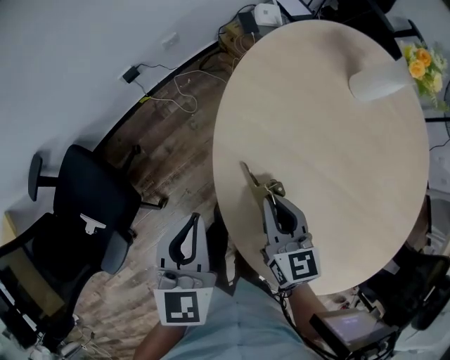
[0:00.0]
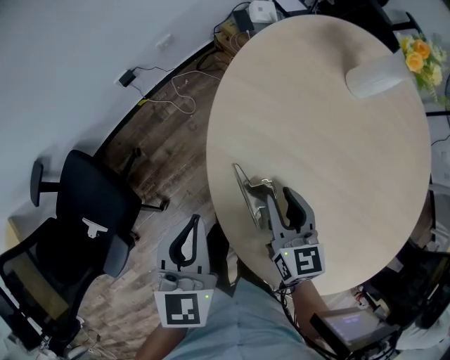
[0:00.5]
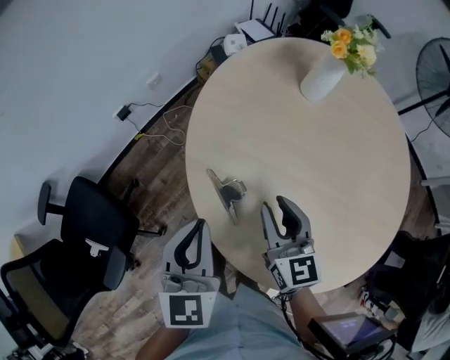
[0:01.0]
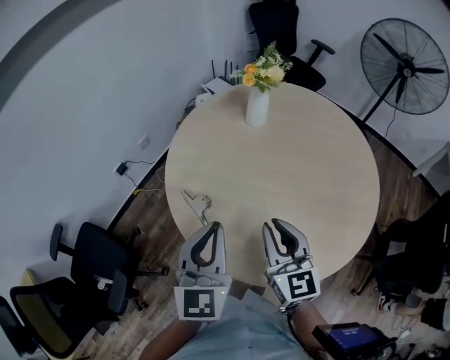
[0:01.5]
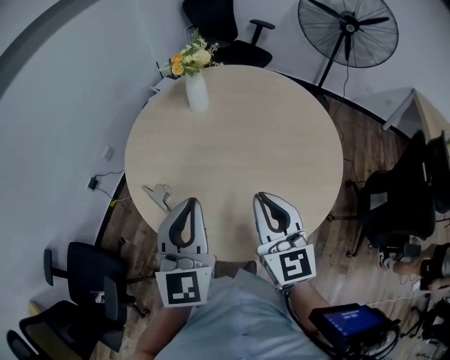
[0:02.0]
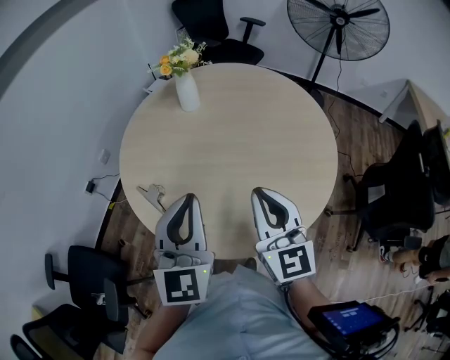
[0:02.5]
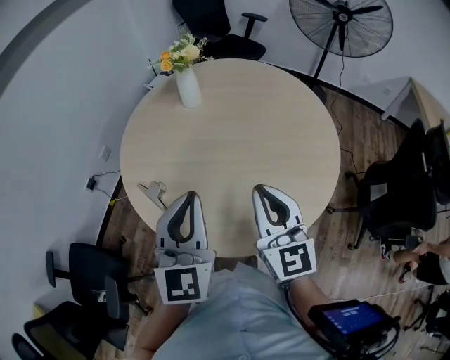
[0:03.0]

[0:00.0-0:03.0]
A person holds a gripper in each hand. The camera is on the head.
0:00.0 to 0:01.5: The right gripper goes about 35 cm upward, to the right and backward, and turns by some 30 degrees. The left gripper goes some 35 cm to the right, upward and backward, and changes its angle by roughly 30 degrees.
0:01.5 to 0:03.0: The left gripper moves to the right, approximately 10 cm; the right gripper is displaced to the right and backward by roughly 15 cm.

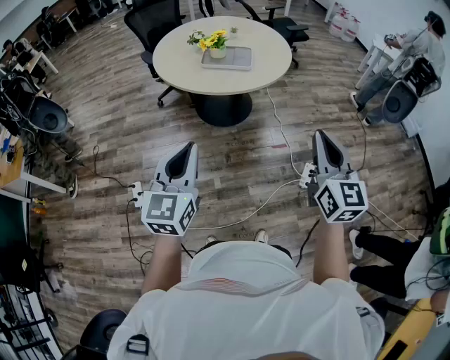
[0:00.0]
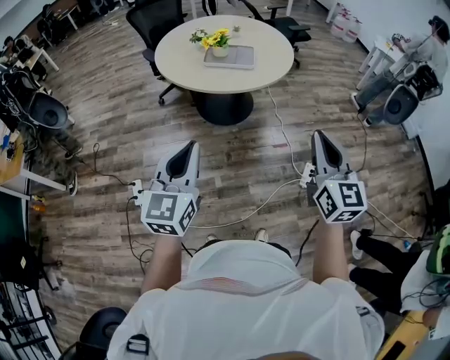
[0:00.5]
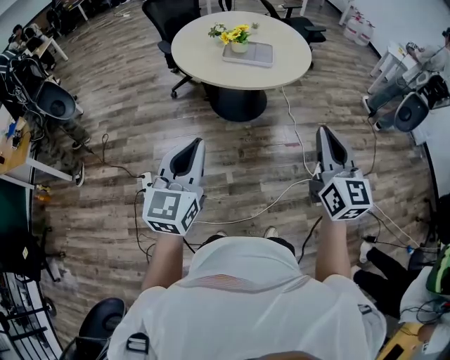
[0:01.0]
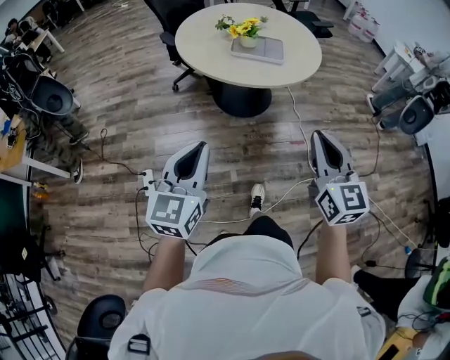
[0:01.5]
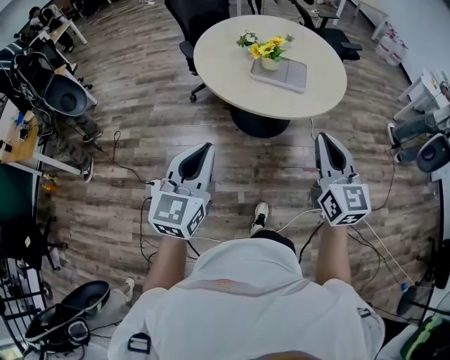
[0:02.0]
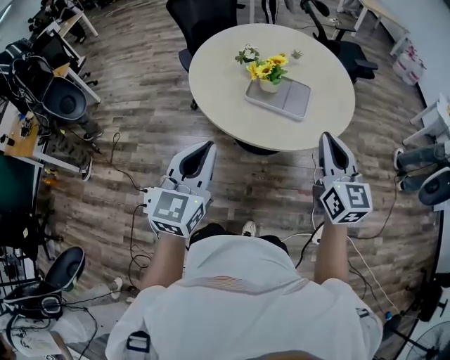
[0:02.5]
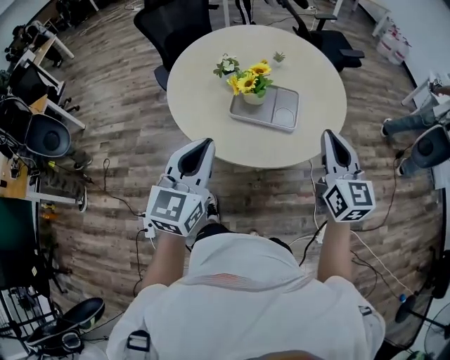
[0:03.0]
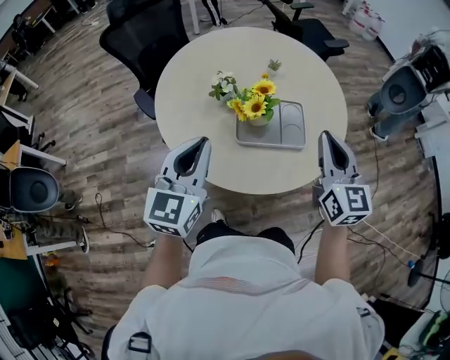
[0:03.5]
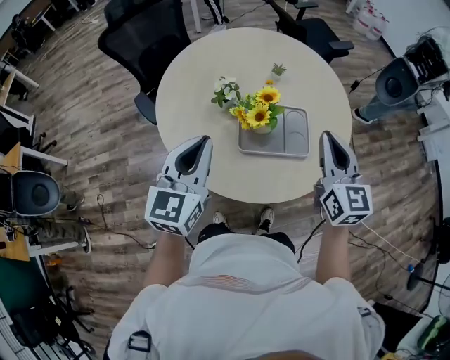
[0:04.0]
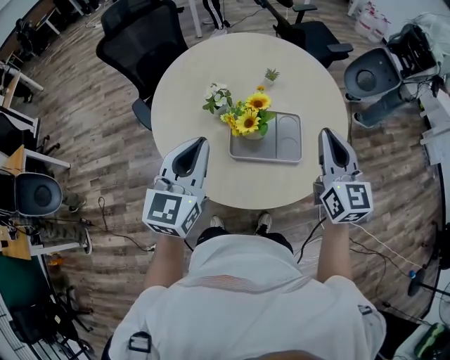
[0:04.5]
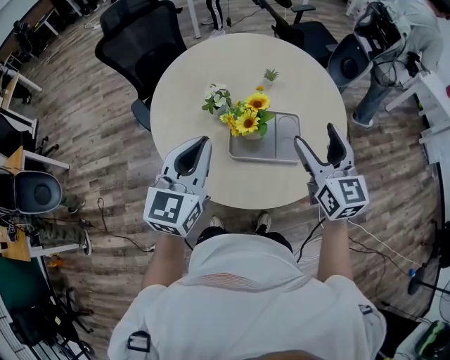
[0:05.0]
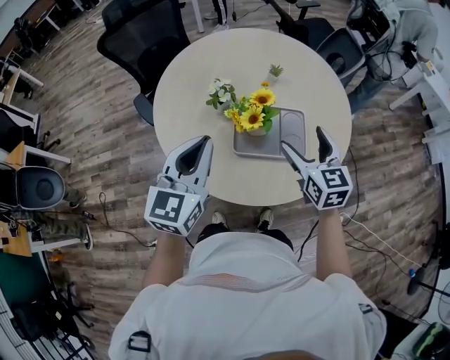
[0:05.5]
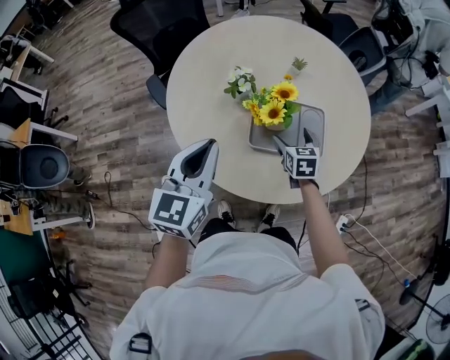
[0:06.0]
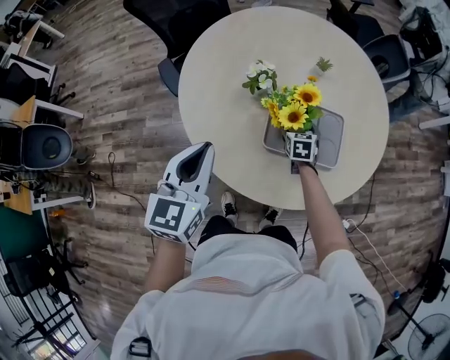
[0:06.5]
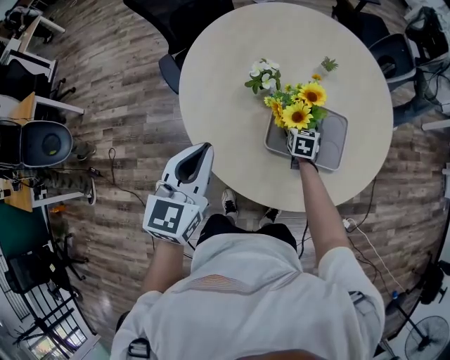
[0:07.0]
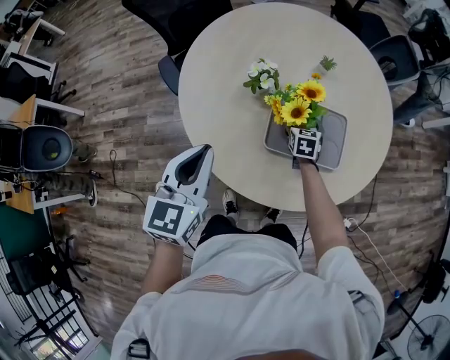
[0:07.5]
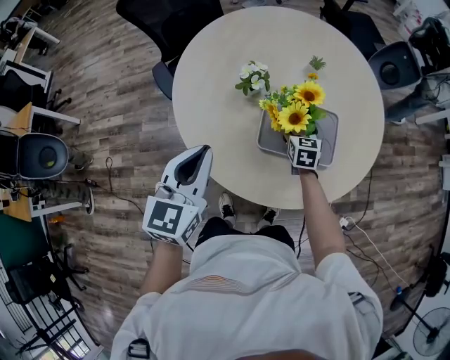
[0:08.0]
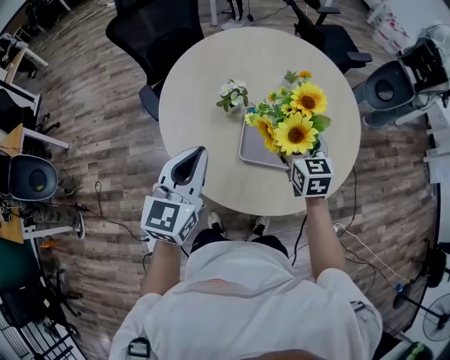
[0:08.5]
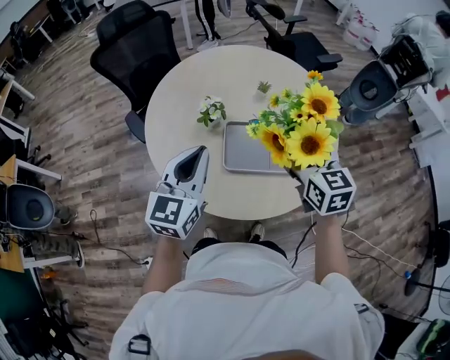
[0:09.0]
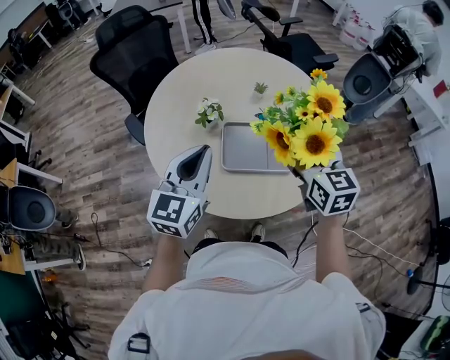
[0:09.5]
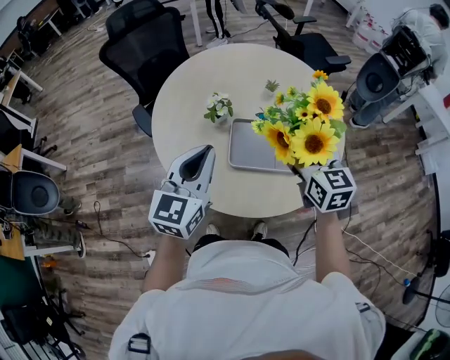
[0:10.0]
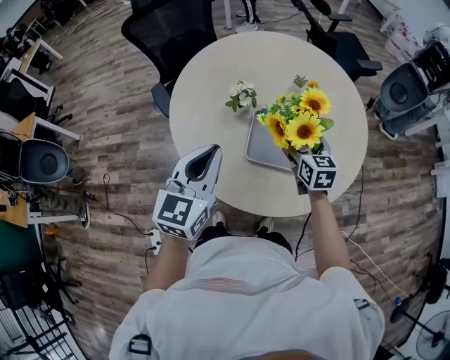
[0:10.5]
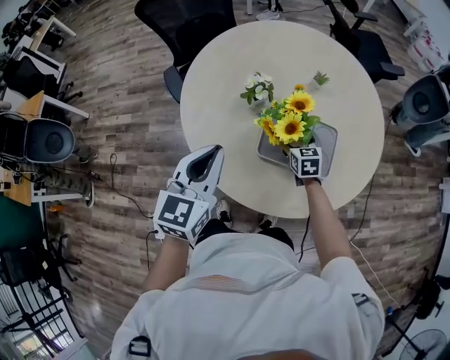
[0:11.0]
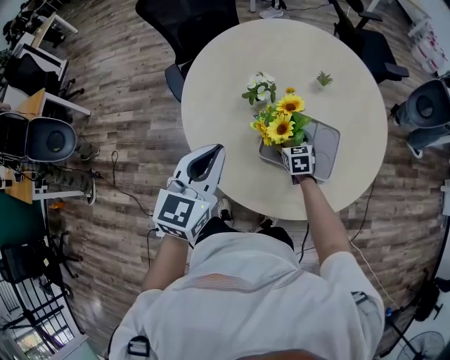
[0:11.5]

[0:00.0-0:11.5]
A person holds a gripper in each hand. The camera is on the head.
0:00.0 to 0:02.0: The two grippers go approximately 25 cm forward and to the left.
0:02.0 to 0:04.0: The two grippers travel together, forward, approximately 50 cm.
0:04.0 to 0:06.0: The right gripper moves downward, some 25 cm, angles its fingers downward, by some 30 degrees, and opens its fingers.
0:06.0 to 0:07.5: The left gripper goes about 5 cm to the left; the right gripper is displaced downward and forward by approximately 15 cm.
0:07.5 to 0:09.5: The right gripper goes some 40 cm upward and backward, and turns by some 30 degrees. The left gripper shifts about 10 cm to the right and upward.
0:09.5 to 0:11.5: The left gripper heads downward, covering some 5 cm; the right gripper shifts approximately 35 cm downward, and changes its angle by approximately 30 degrees.

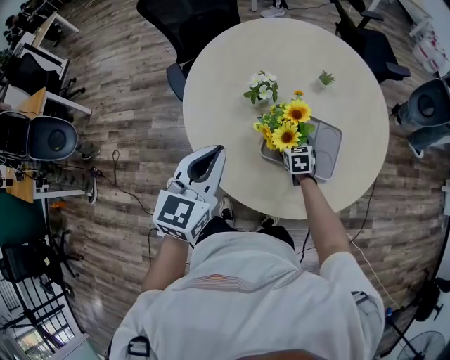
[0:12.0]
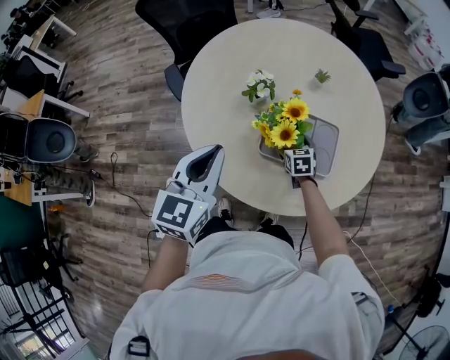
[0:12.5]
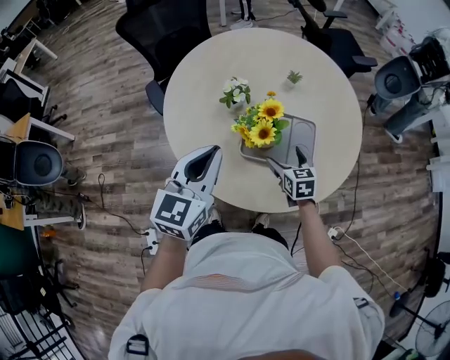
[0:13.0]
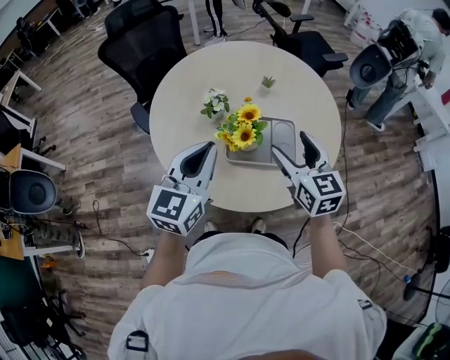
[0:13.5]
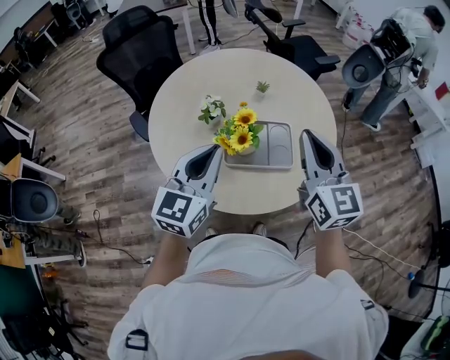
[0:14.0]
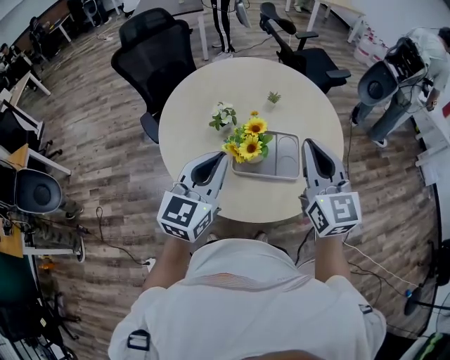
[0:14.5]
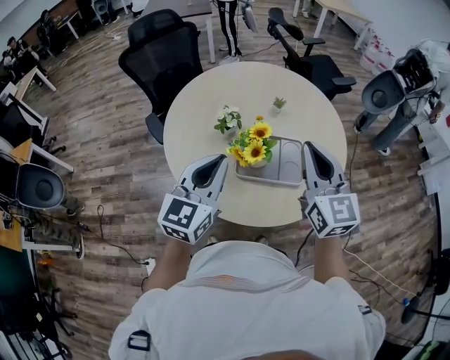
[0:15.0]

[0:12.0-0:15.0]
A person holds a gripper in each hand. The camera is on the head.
0:12.0 to 0:13.5: The right gripper is displaced upward and backward by some 35 cm, and angles its fingers upward, by roughly 30 degrees. The left gripper travels upward and to the right by about 10 cm.
0:13.5 to 0:15.0: The right gripper travels upward by about 10 cm, and closes up.

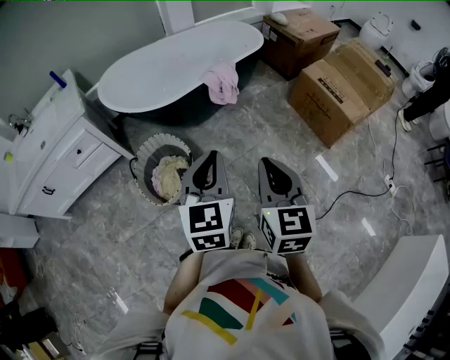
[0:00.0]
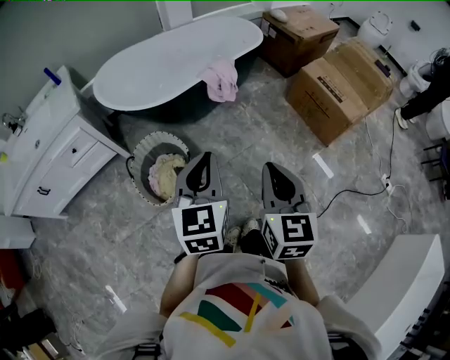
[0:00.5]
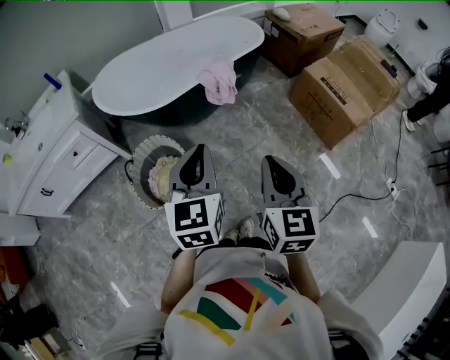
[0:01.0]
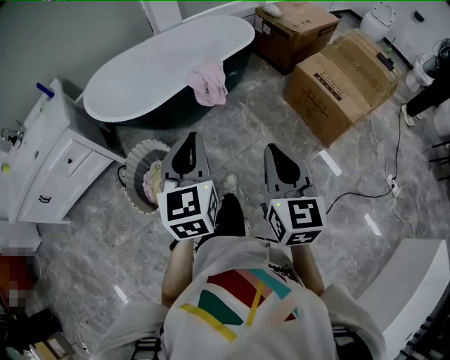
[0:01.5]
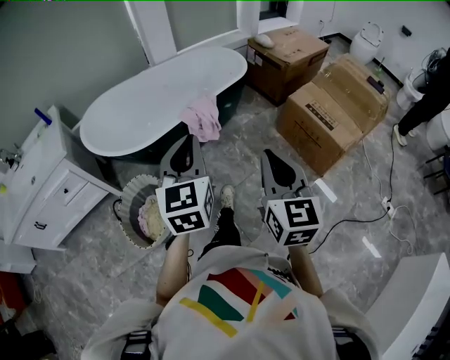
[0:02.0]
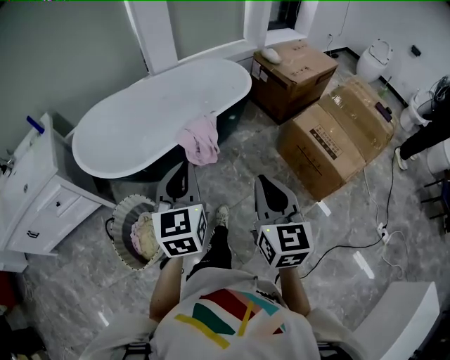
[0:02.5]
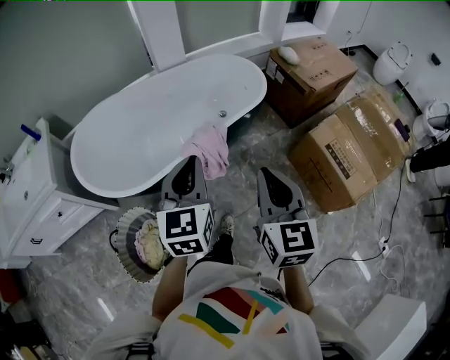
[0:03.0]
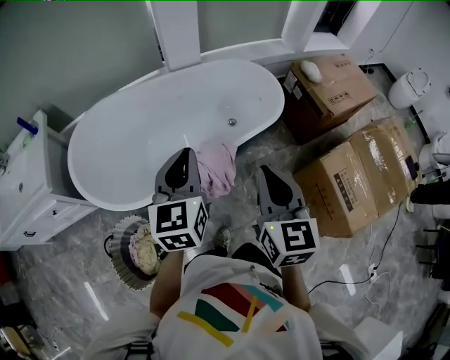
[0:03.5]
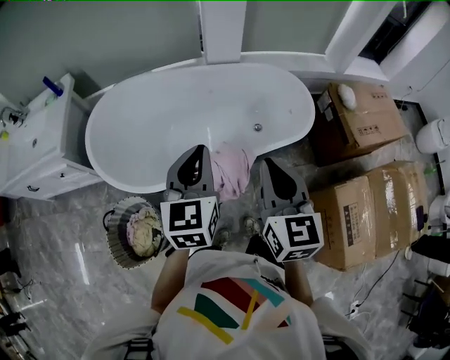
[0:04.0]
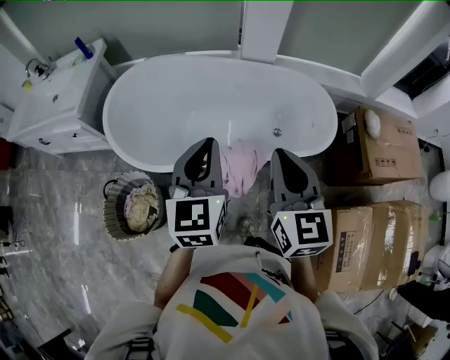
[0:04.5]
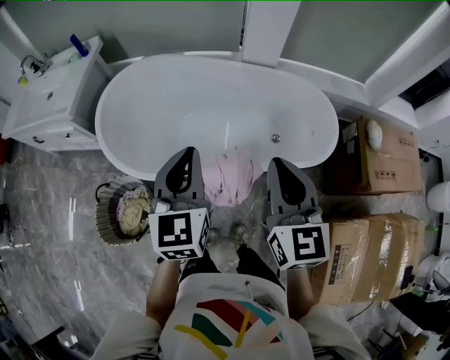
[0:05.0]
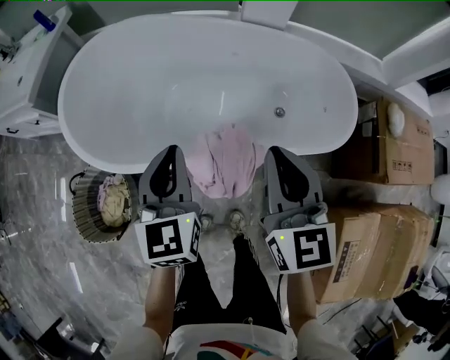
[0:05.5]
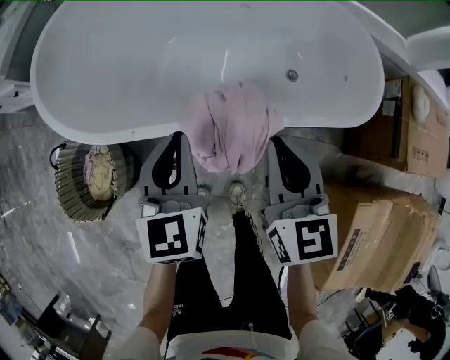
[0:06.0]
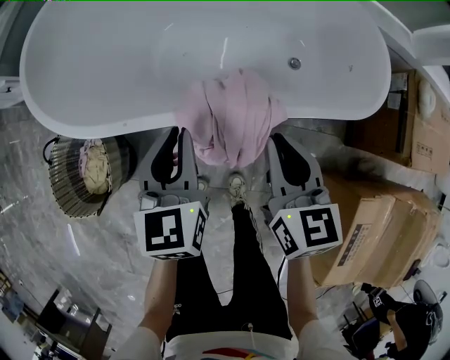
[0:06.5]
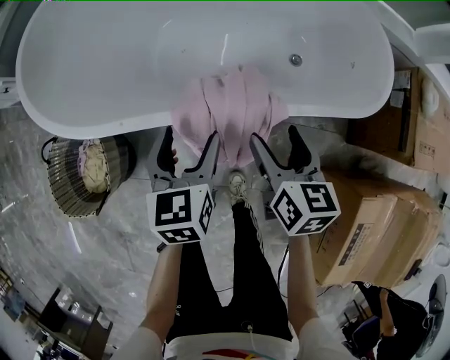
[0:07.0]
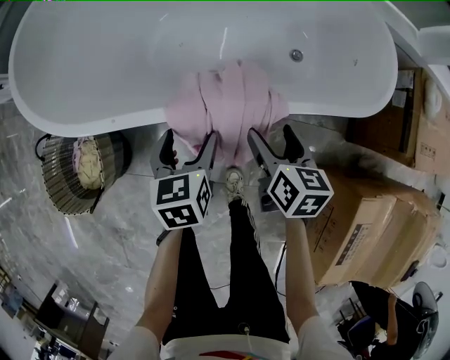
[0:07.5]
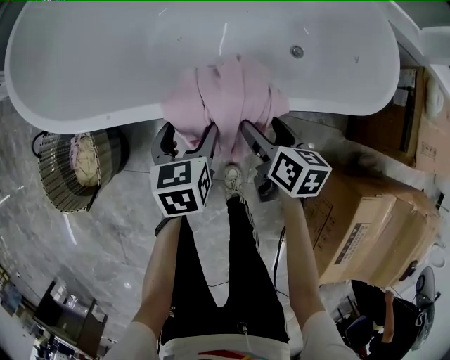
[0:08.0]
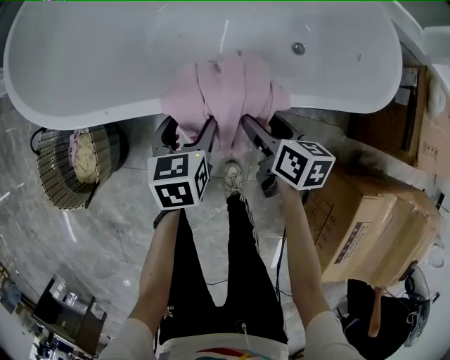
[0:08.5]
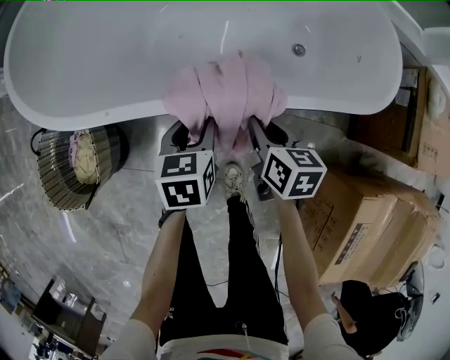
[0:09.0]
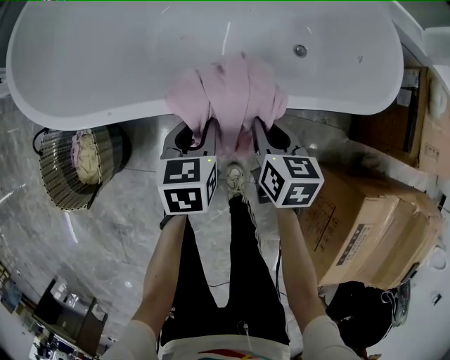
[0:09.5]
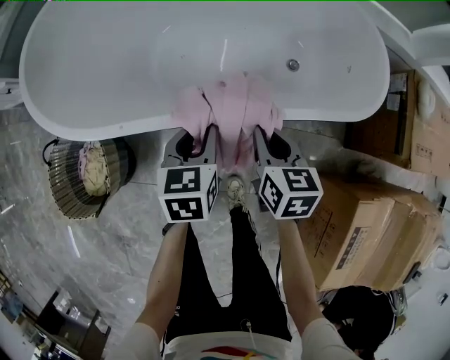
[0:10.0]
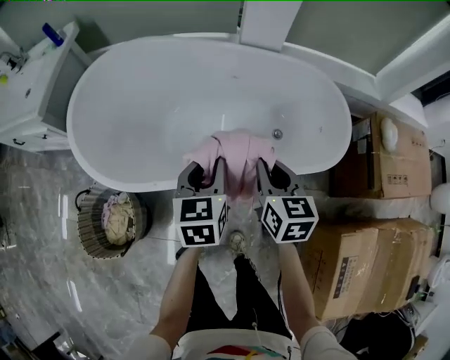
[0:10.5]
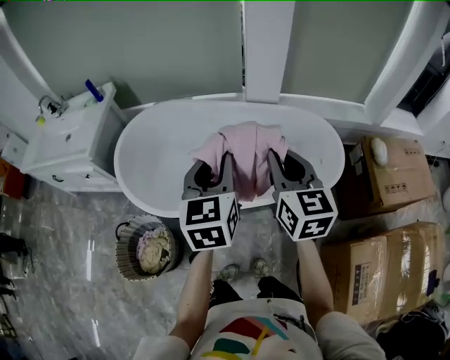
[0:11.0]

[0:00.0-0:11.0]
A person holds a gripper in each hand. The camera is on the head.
0:00.0 to 0:02.0: The left gripper travels forward by approximately 20 cm, while the right gripper is displaced forward and to the right by approximately 20 cm.
0:02.0 to 0:03.5: Both grippers are carried forward, roughly 40 cm.
0:03.5 to 0:05.5: The left gripper shifts approximately 20 cm downward, and turns by about 30 degrees, while the right gripper moves some 25 cm, and turns by about 30 degrees.
0:05.5 to 0:07.5: Both grippers move downward, about 30 cm. The right gripper rotates approximately 40 degrees, and opens its fingers, while the left gripper rotates about 30 degrees, and opens up.
0:07.5 to 0:09.0: The left gripper closes up; the right gripper closes its fingers.
0:09.0 to 0:11.0: Both grippers travel together upward, about 50 cm. The left gripper tilts its fingers roughly 30 degrees upward; the right gripper tilts its fingers some 30 degrees upward.
